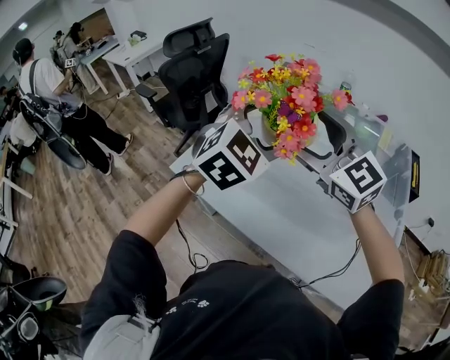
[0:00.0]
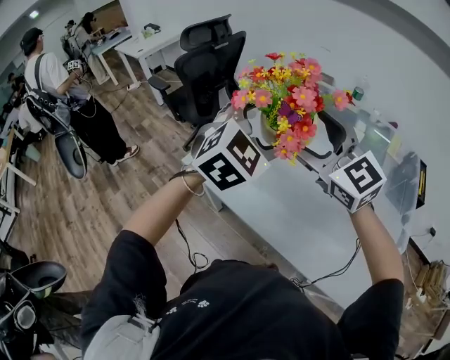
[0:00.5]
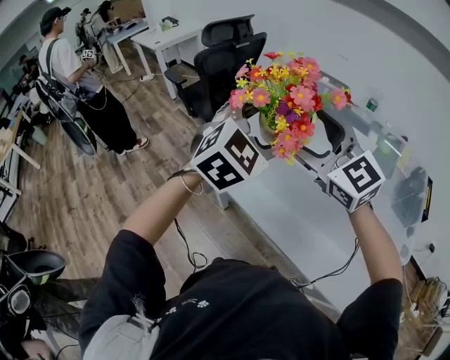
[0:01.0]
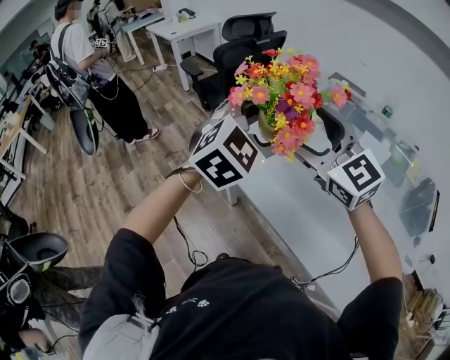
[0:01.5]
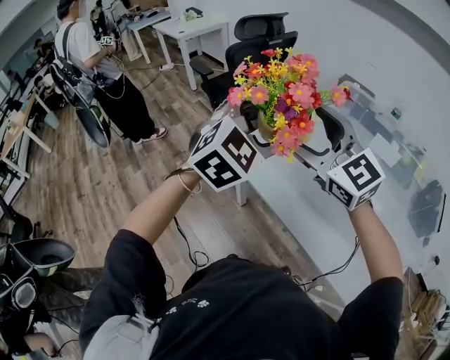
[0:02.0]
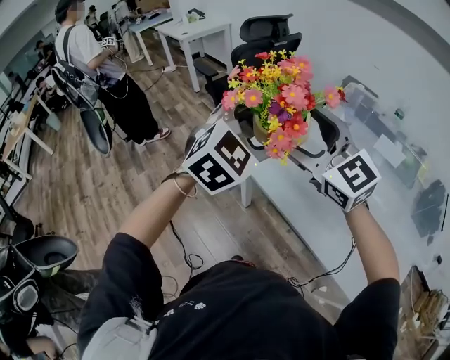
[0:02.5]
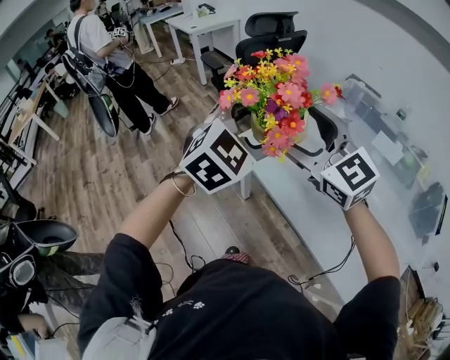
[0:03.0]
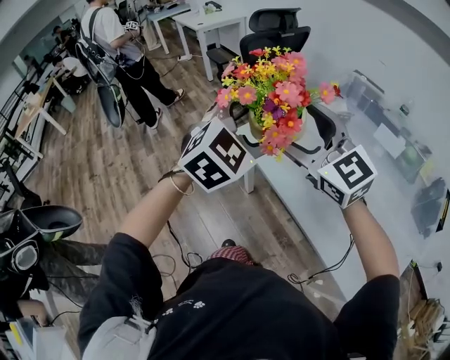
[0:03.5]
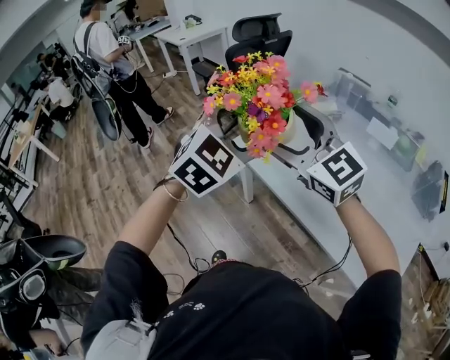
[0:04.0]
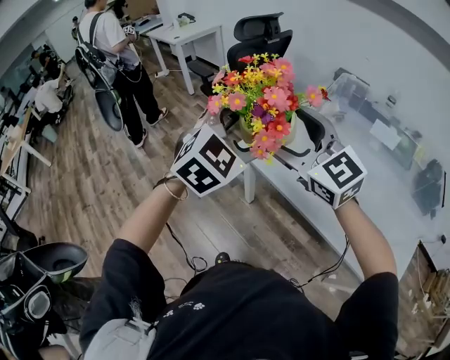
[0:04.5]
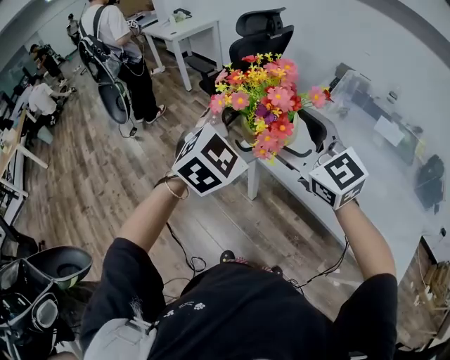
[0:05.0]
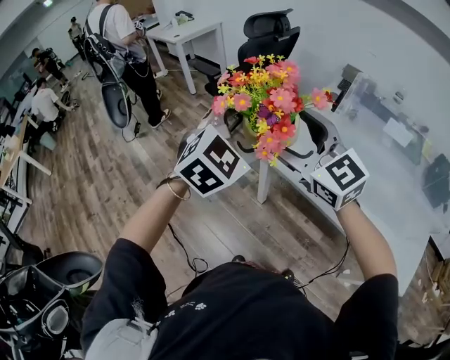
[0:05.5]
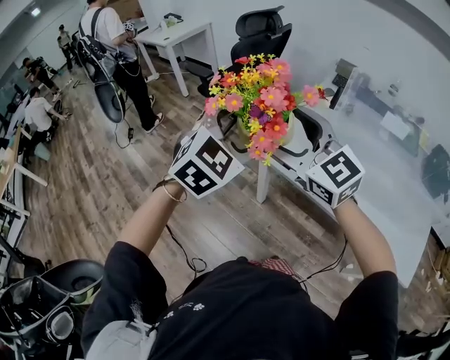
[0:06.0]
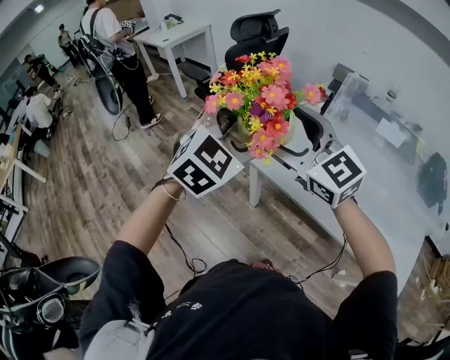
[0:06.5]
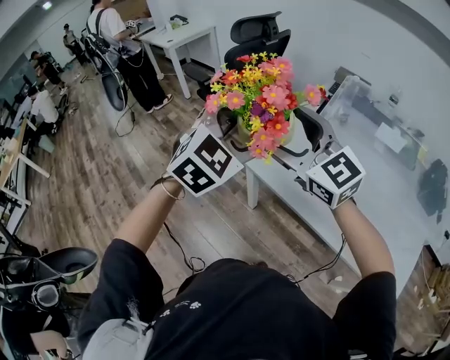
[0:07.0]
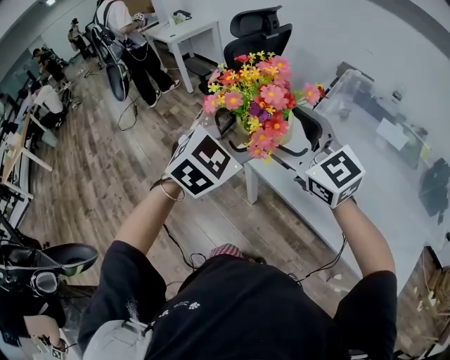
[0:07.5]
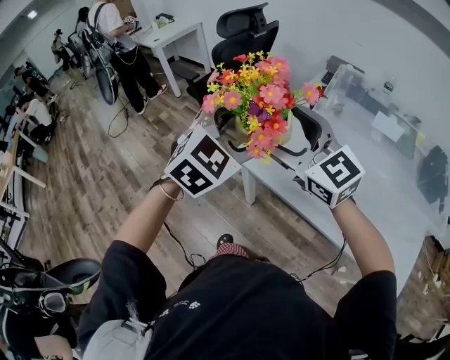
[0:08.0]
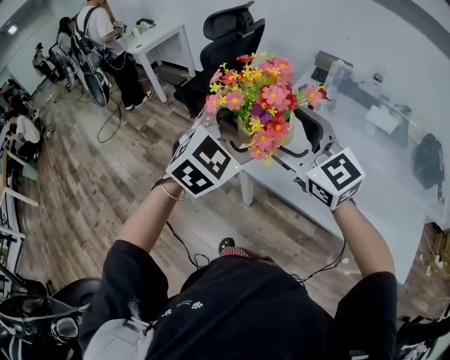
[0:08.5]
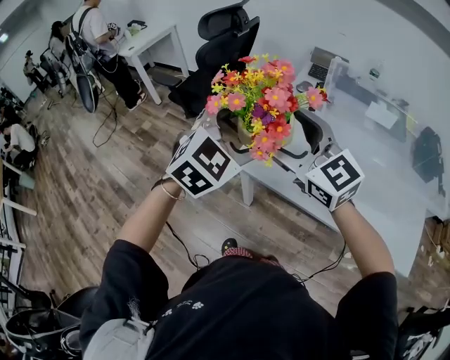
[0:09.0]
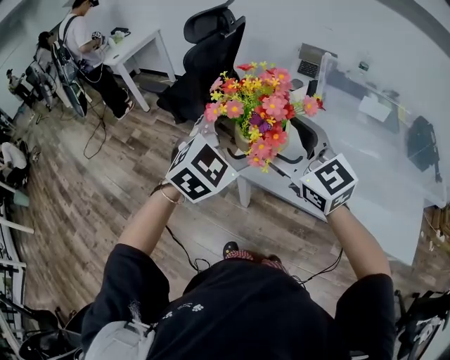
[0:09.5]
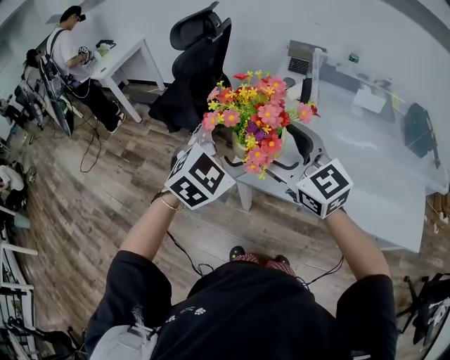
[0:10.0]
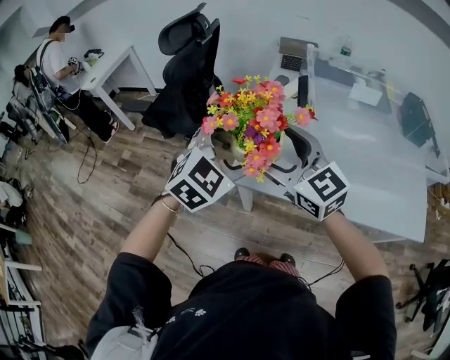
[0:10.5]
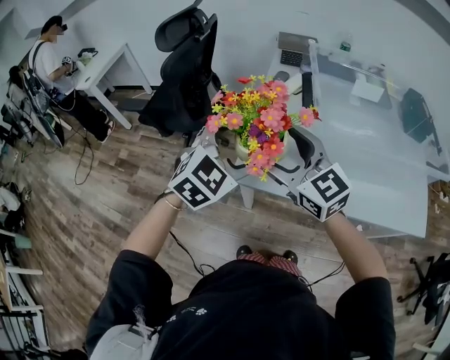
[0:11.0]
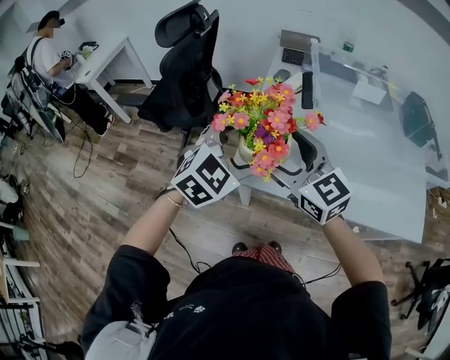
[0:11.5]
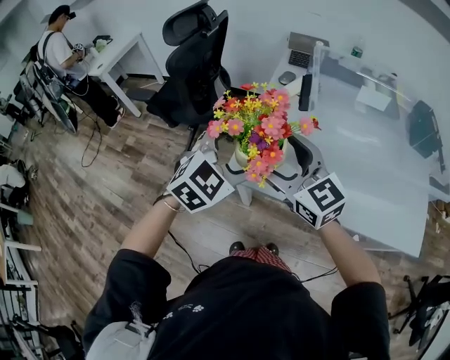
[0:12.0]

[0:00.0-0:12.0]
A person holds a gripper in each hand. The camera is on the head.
0:00.0 to 0:02.0: Both grippers travel together to the left, roughly 20 cm.
0:02.0 to 0:04.0: The grippers both shift backward by some 5 cm.
0:04.0 to 0:06.0: Both grippers travel together to the left and forward, about 15 cm.
0:06.0 to 0:08.0: Both grippers move to the right, about 10 cm.
0:08.0 to 0:10.0: Both grippers move forward, some 5 cm. The right gripper turns by some 20 degrees.
0:10.0 to 0:12.0: The grippers stay close to where they were, moving slightly.

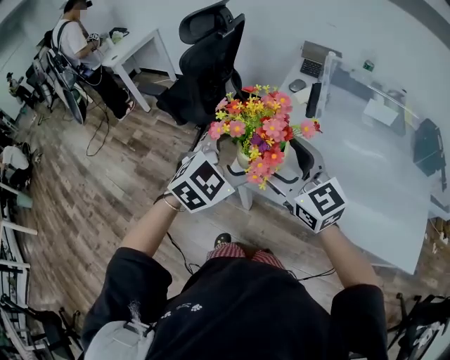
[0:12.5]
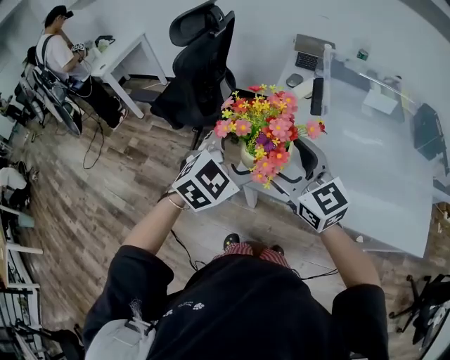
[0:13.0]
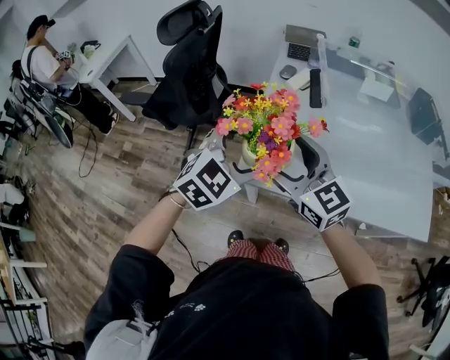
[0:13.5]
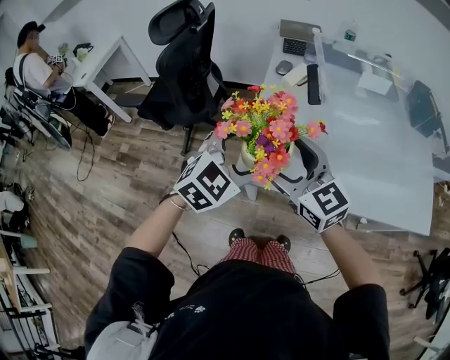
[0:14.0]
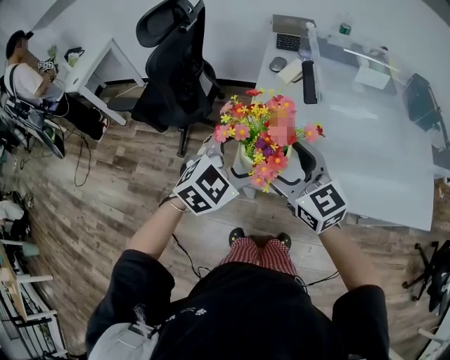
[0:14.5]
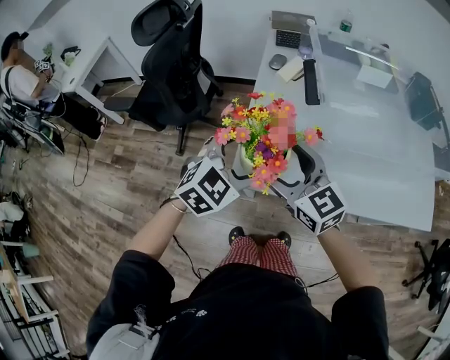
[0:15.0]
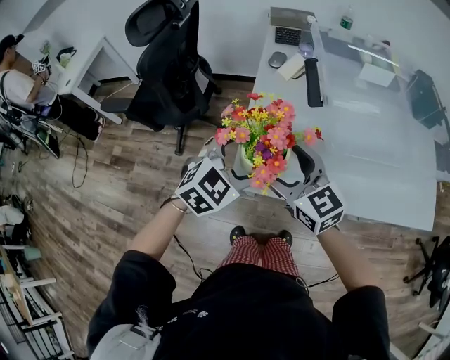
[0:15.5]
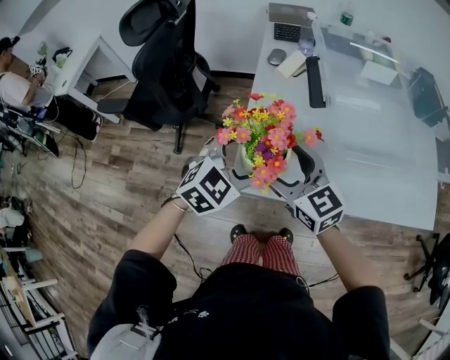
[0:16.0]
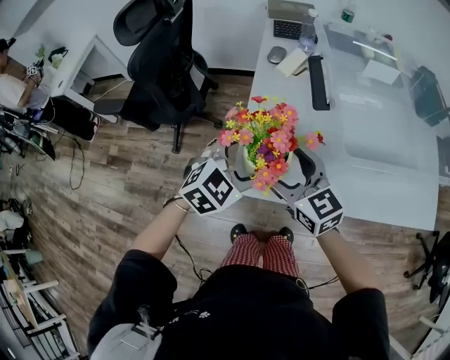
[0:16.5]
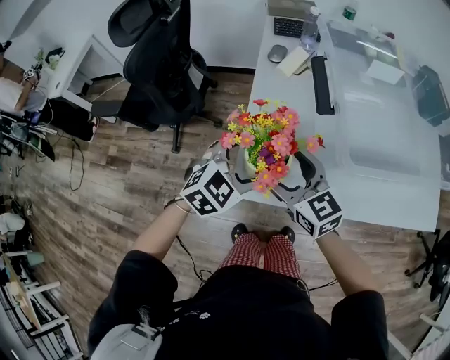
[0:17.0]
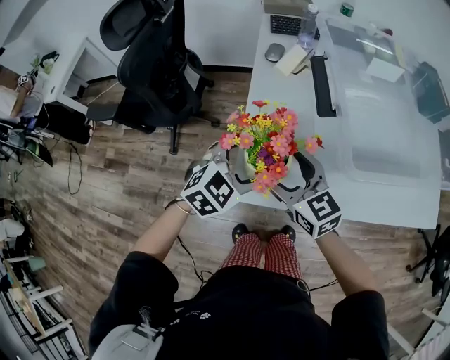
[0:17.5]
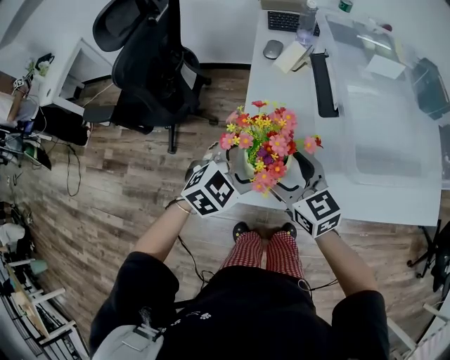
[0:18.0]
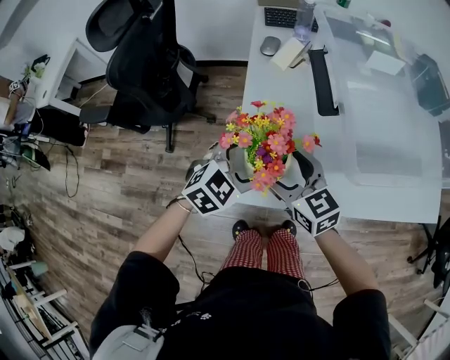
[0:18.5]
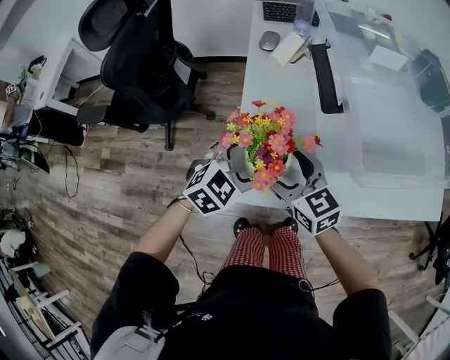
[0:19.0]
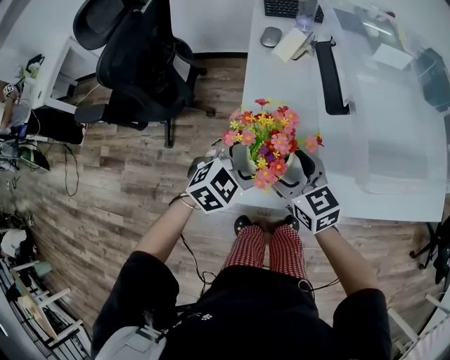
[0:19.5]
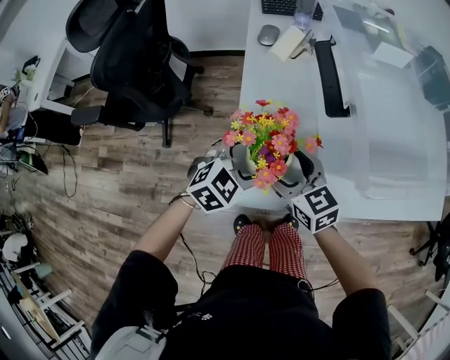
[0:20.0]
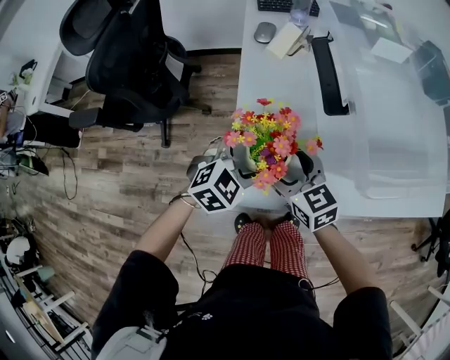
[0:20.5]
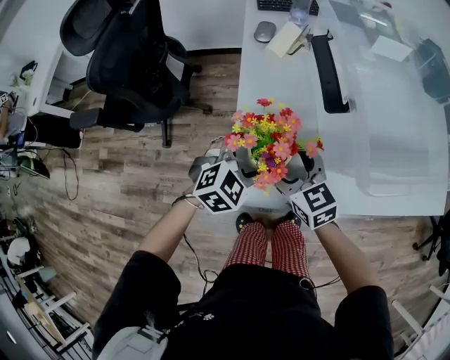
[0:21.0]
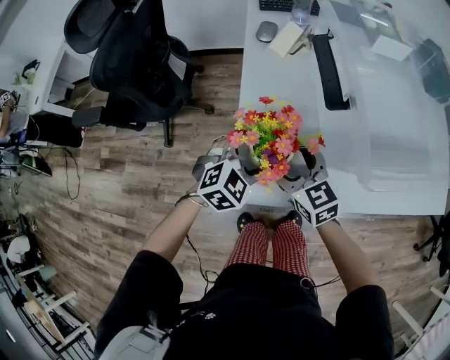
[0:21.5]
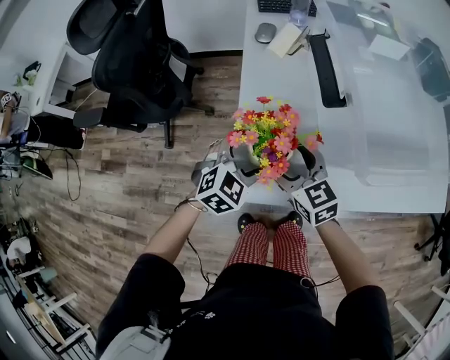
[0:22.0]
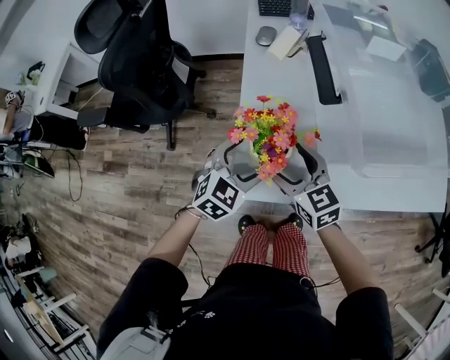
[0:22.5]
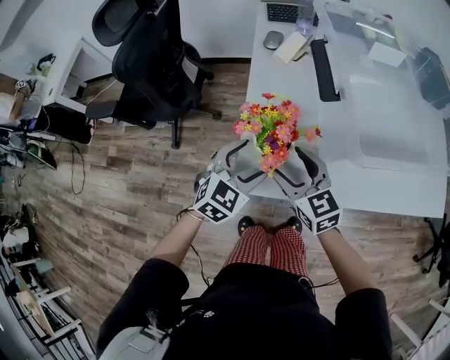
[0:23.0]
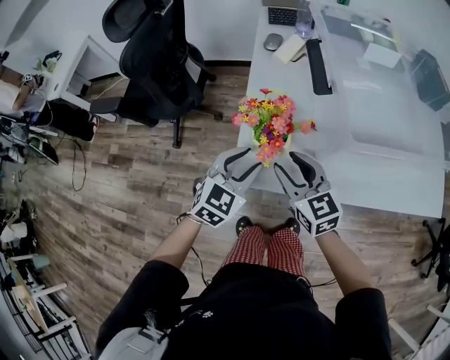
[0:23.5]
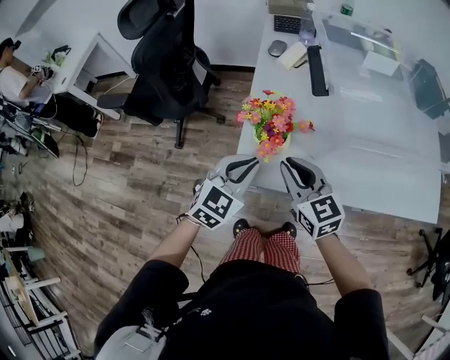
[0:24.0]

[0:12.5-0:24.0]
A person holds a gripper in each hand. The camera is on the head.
0:12.5 to 0:14.5: Both grippers travel together downward, approximately 5 cm.
0:14.5 to 0:16.5: The two grippers go roughly 5 cm downward.
0:16.5 to 0:18.5: The grippers both shift downward by roughly 5 cm.
0:18.5 to 0:22.0: The grippers move only a little.
0:22.0 to 0:24.0: Both grippers travel together backward and upward, about 10 cm. The right gripper closes up; the left gripper closes up.

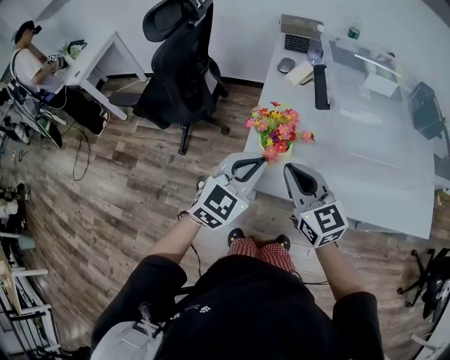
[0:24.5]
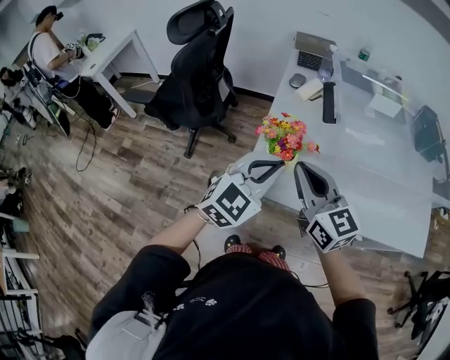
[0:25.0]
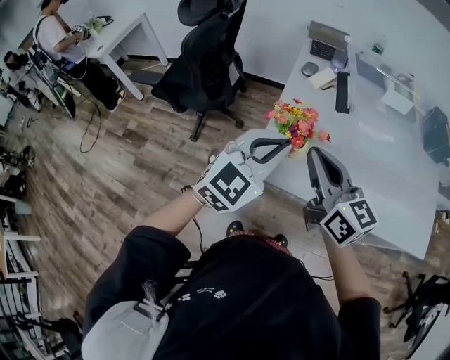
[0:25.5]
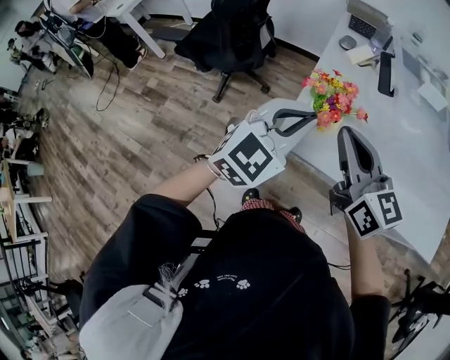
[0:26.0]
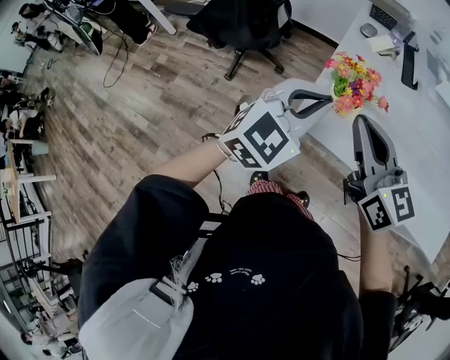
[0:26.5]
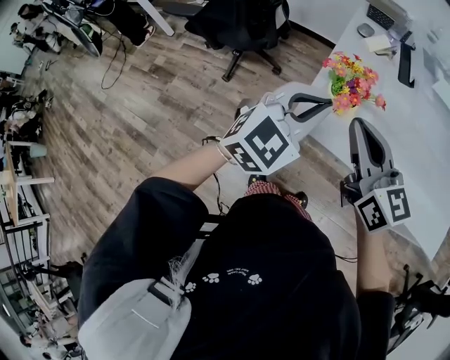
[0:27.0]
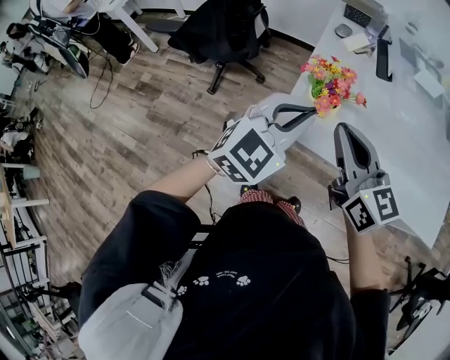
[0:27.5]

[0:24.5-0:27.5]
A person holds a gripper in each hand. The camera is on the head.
0:24.5 to 0:26.0: The two grippers go some 5 cm upward.
0:26.0 to 0:27.5: The grippers stay close to where they were, moving slightly.

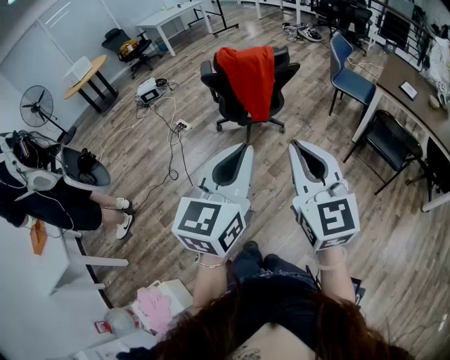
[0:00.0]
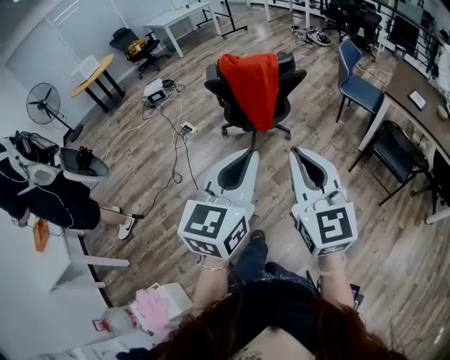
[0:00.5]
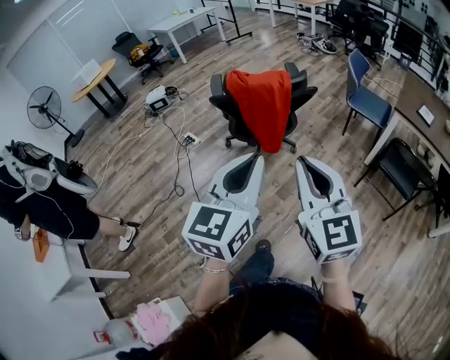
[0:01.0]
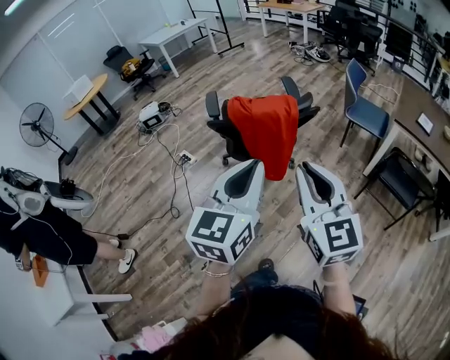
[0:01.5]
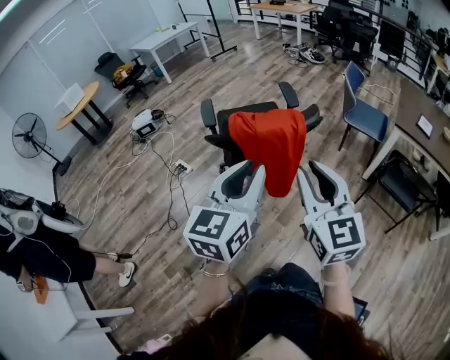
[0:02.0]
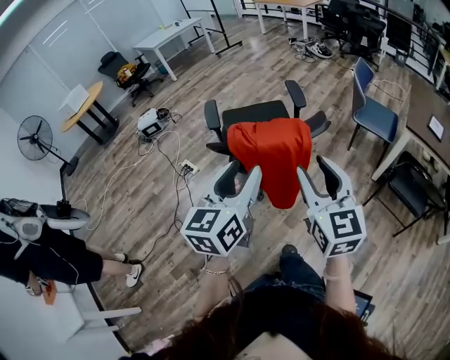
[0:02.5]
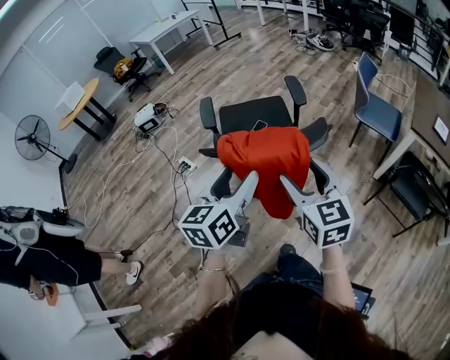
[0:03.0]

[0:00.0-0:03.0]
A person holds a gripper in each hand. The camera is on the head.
0:00.0 to 0:01.5: Both grippers travel together forward, roughly 20 cm.
0:01.5 to 0:03.0: The two grippers go approximately 25 cm forward and downward. The right gripper opens up; the left gripper opens up.
